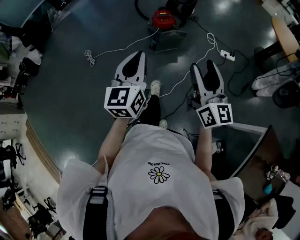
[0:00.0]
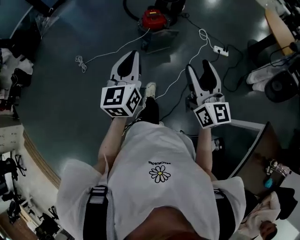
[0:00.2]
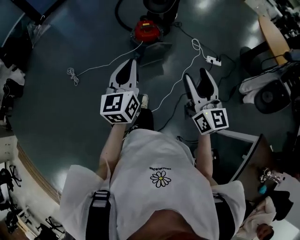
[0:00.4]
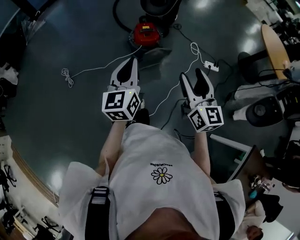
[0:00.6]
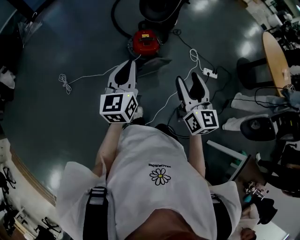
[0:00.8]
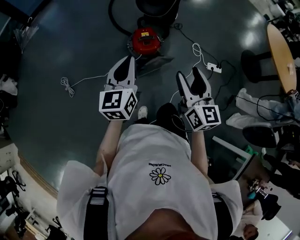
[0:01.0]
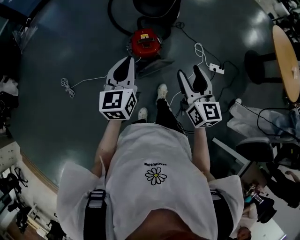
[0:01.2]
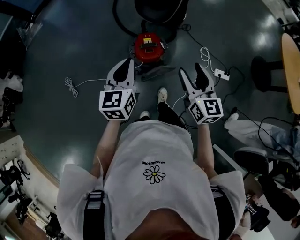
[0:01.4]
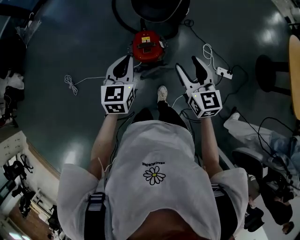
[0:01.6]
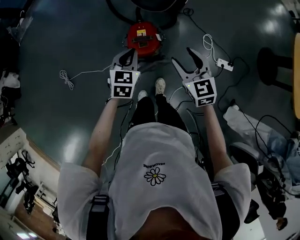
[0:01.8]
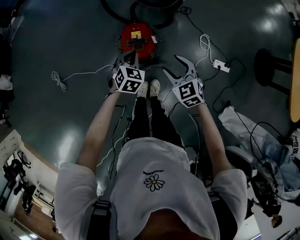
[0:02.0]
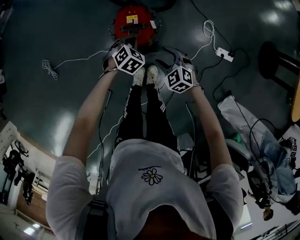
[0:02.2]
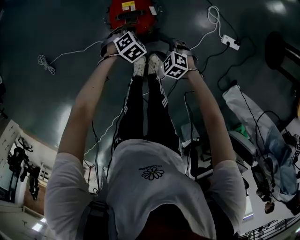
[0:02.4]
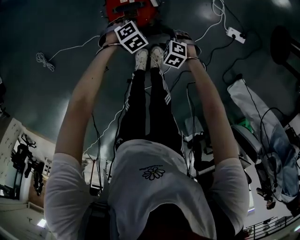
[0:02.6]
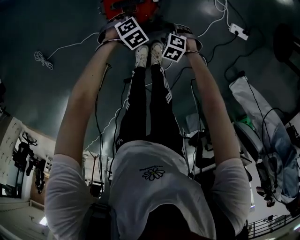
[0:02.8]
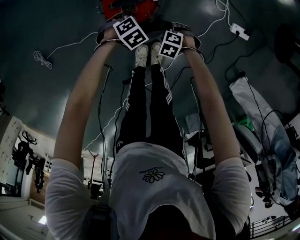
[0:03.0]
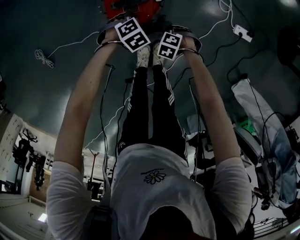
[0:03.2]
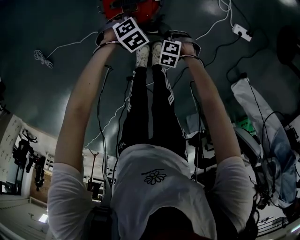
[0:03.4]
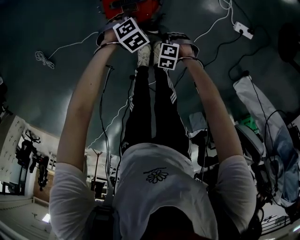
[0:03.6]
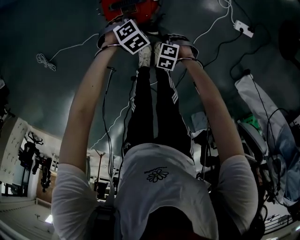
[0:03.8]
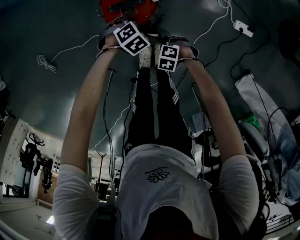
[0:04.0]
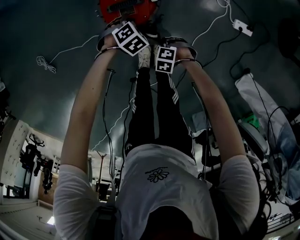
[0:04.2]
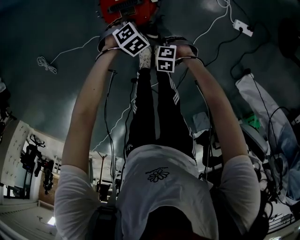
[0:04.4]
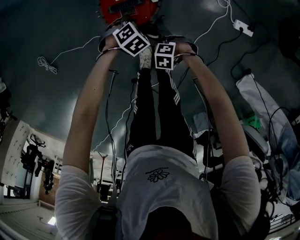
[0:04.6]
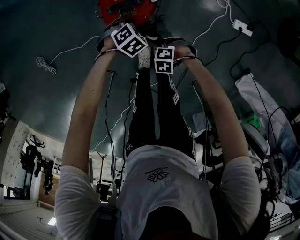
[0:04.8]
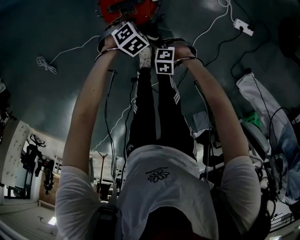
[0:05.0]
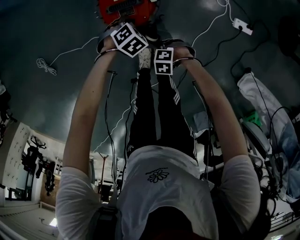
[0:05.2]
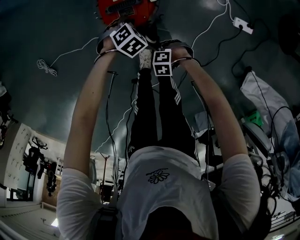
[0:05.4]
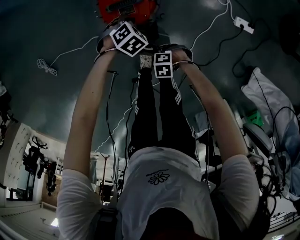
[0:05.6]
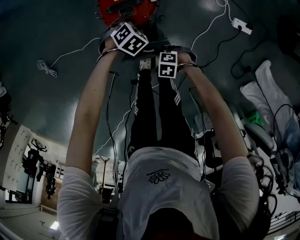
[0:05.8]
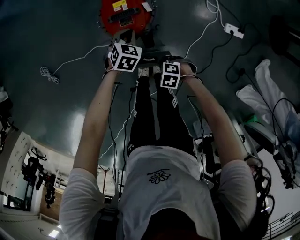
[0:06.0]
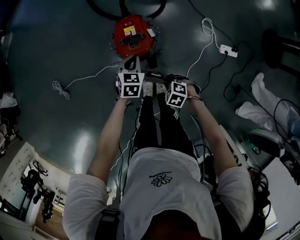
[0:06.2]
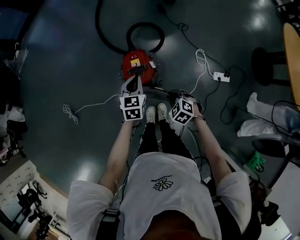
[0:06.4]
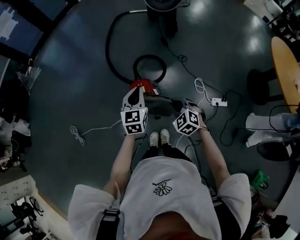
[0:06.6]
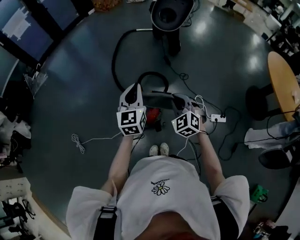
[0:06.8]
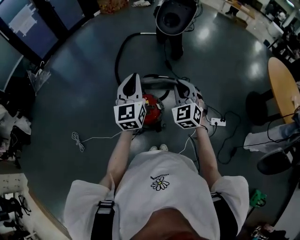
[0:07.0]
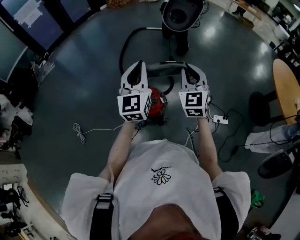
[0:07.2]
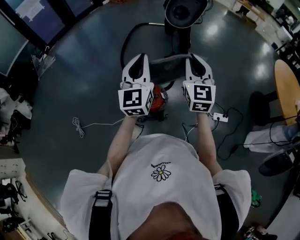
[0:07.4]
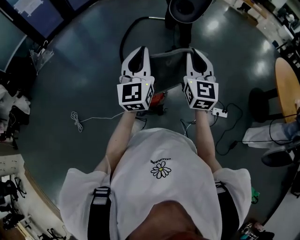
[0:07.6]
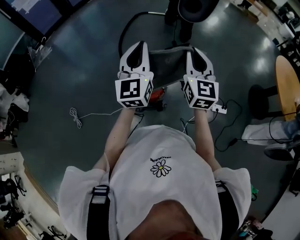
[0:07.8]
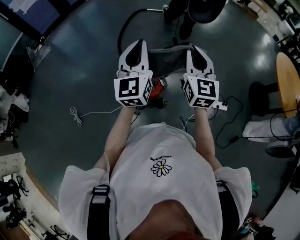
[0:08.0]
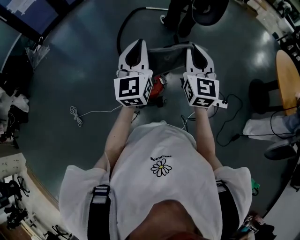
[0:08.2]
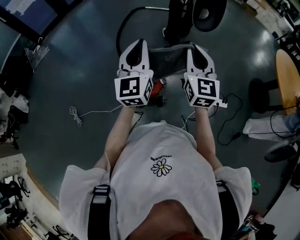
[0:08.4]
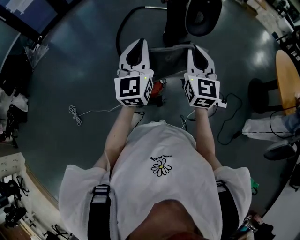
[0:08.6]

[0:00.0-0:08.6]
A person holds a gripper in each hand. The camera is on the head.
0.0 to 1.4 s: The pair of grippers is taken forward, some 60 cm. The right gripper swivels some 20 degrees.
1.4 to 2.8 s: The two grippers go about 50 cm downward. The right gripper angles its fingers downward, by about 60 degrees. The left gripper angles its fingers downward, by roughly 60 degrees.
2.8 to 4.4 s: The right gripper moves approximately 5 cm, and closes up.
4.4 to 5.8 s: The right gripper moves about 5 cm.
5.8 to 7.2 s: Both grippers travel together upward, approximately 70 cm. The left gripper angles its fingers upward, by roughly 80 degrees, while the right gripper tilts its fingers roughly 70 degrees upward.
7.2 to 8.6 s: The right gripper rotates about 20 degrees.

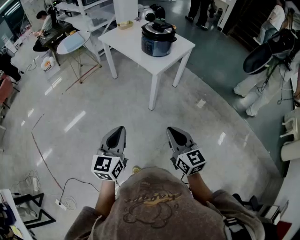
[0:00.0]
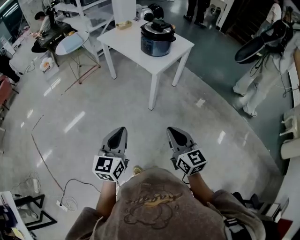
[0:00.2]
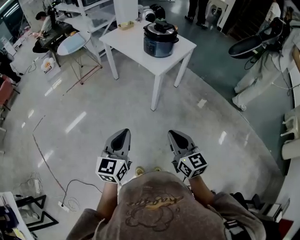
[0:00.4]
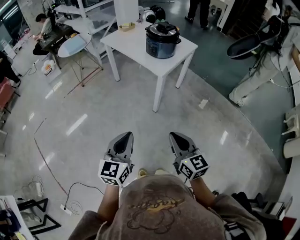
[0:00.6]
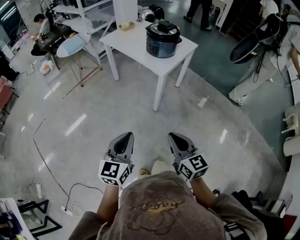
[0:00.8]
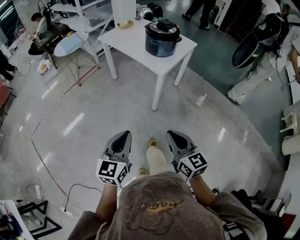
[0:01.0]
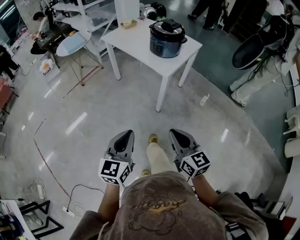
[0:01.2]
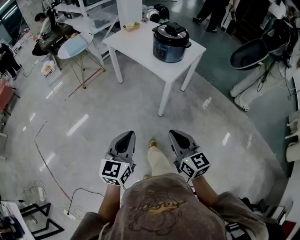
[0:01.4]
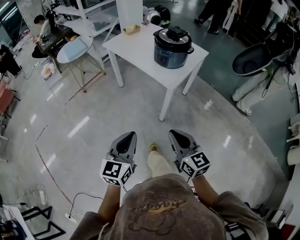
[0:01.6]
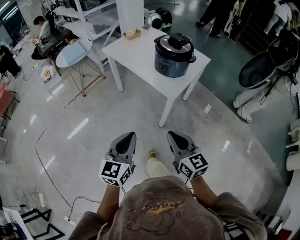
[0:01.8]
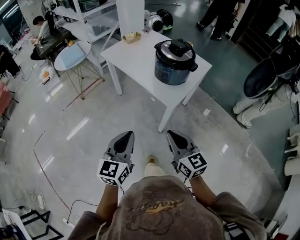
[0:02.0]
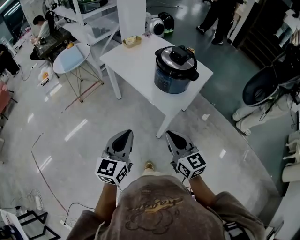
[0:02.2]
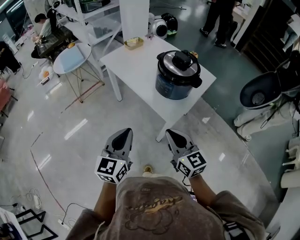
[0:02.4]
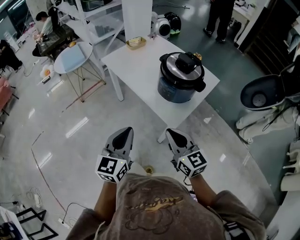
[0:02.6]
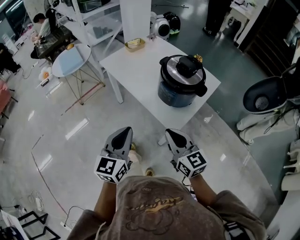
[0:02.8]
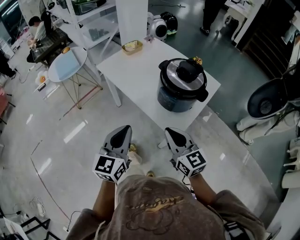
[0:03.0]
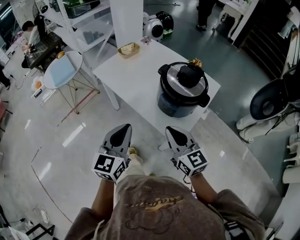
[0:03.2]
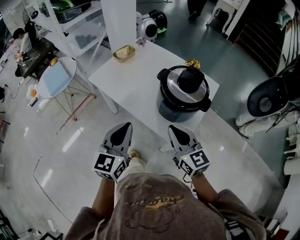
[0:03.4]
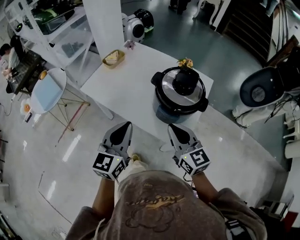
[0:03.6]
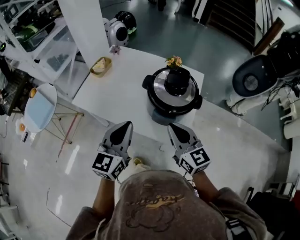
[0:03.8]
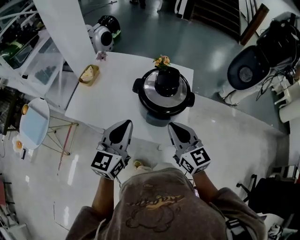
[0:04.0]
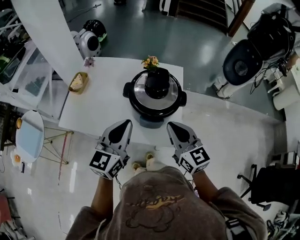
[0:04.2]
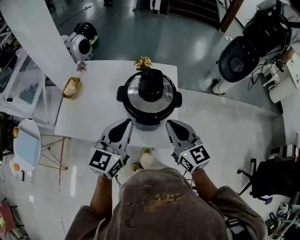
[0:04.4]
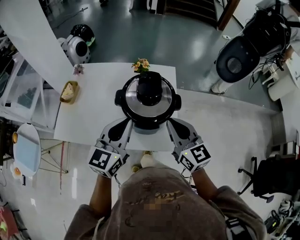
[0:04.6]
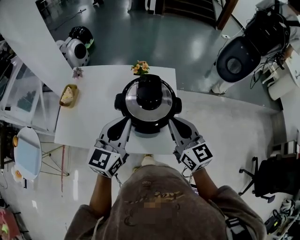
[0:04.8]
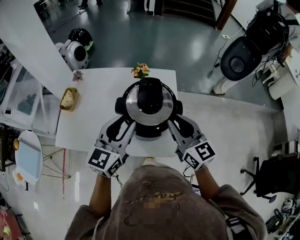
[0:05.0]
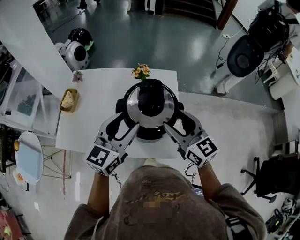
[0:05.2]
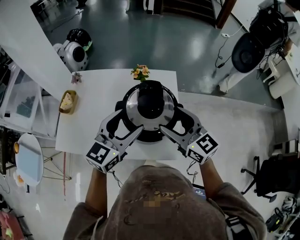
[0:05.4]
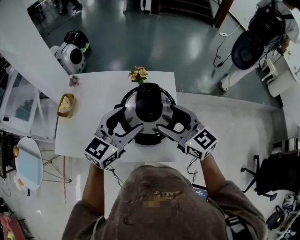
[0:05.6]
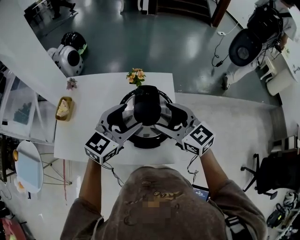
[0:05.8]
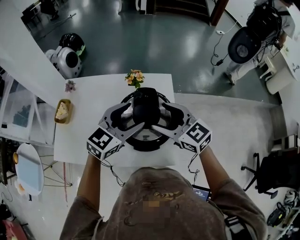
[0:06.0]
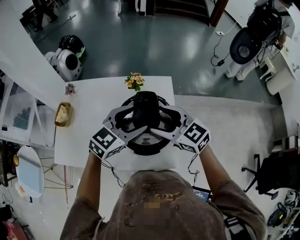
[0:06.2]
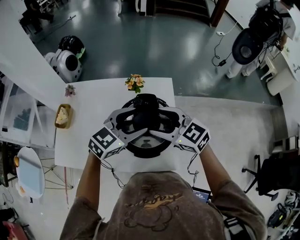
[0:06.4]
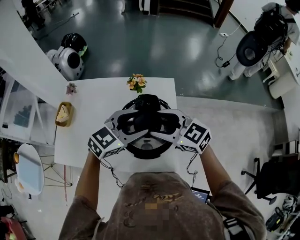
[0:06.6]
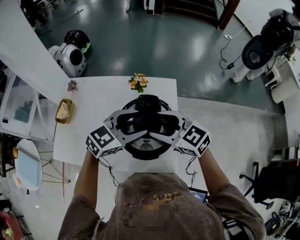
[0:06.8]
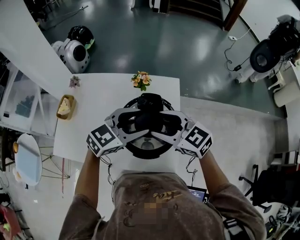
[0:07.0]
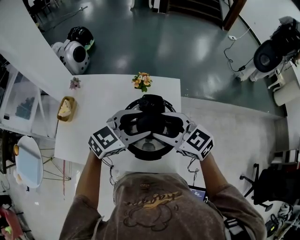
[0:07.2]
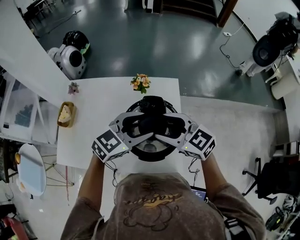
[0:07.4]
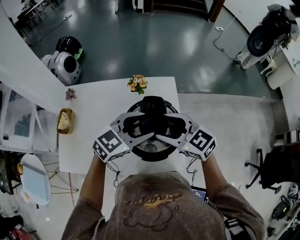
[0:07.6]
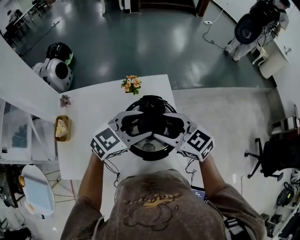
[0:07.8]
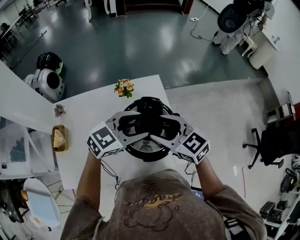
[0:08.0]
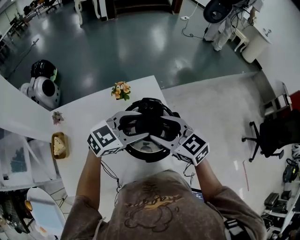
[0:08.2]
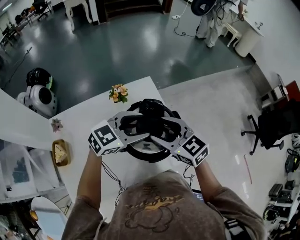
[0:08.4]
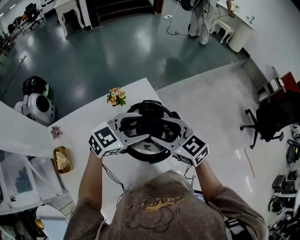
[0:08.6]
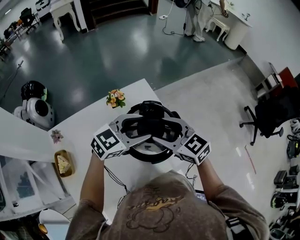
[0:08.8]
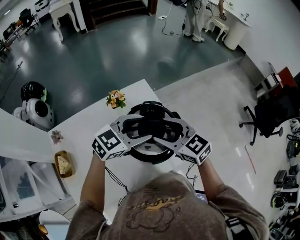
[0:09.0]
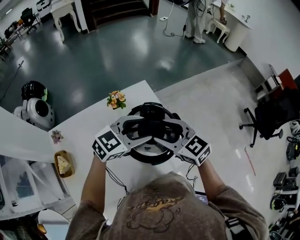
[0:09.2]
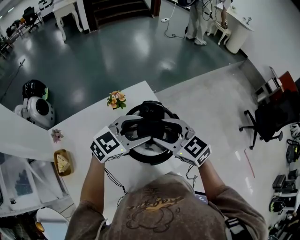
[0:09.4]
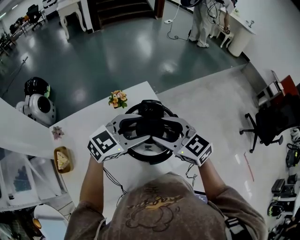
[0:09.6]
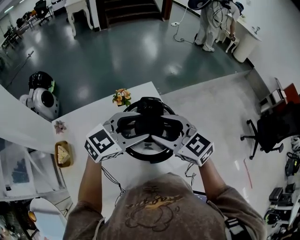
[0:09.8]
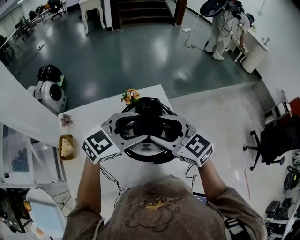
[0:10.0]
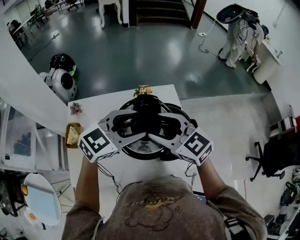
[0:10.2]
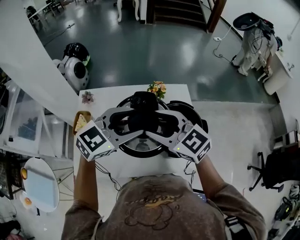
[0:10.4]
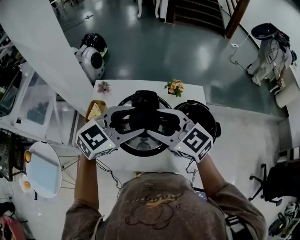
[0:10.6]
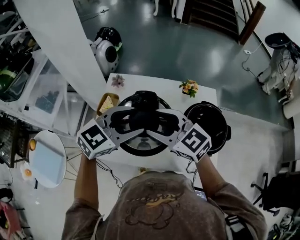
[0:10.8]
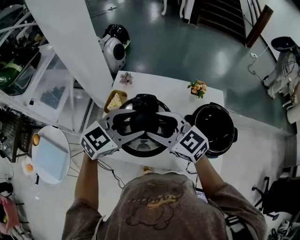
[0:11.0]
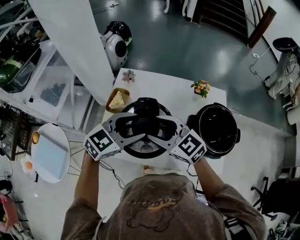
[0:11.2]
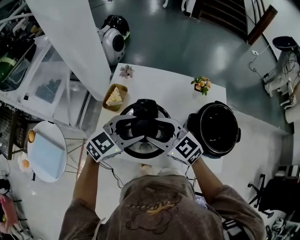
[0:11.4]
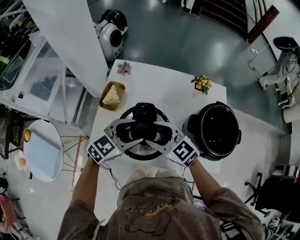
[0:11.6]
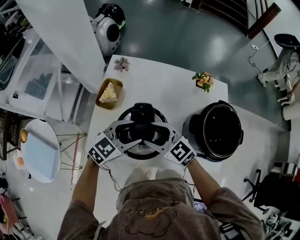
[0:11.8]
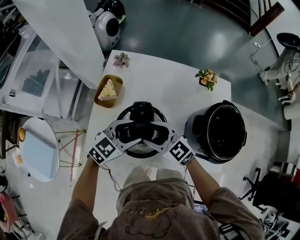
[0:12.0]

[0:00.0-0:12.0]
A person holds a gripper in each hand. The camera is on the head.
0.0 to 1.6 s: The left gripper moves forward, roughly 15 cm. The right gripper travels forward and to the left by approximately 15 cm.
1.6 to 3.0 s: The two grippers go roughly 35 cm forward.
3.0 to 4.4 s: The right gripper changes place by some 15 cm, and turns by approximately 40 degrees, while the left gripper moves approximately 25 cm, and swivels approximately 40 degrees.
4.4 to 6.0 s: The grippers both shift forward by approximately 15 cm. The right gripper opens up. The left gripper swivels roughly 30 degrees, and opens its fingers.
6.0 to 7.6 s: The grippers move only a little.
7.6 to 9.0 s: The left gripper rotates about 30 degrees, while the right gripper rotates roughly 30 degrees.
9.0 to 10.4 s: The left gripper moves some 15 cm, and swivels some 30 degrees. Meanwhile the right gripper moves about 15 cm, and turns by about 30 degrees.
10.4 to 12.0 s: The grippers both shift downward and to the left by approximately 30 cm. The left gripper swivels approximately 20 degrees.

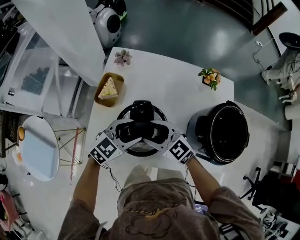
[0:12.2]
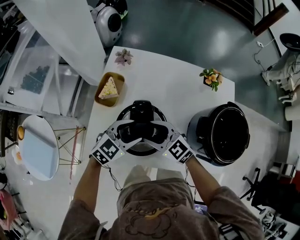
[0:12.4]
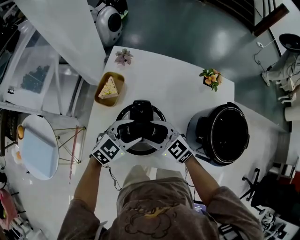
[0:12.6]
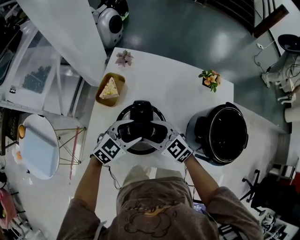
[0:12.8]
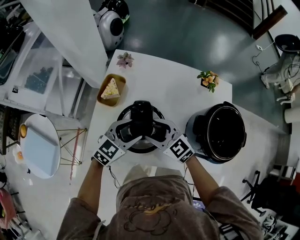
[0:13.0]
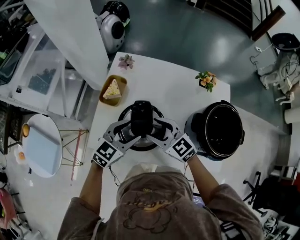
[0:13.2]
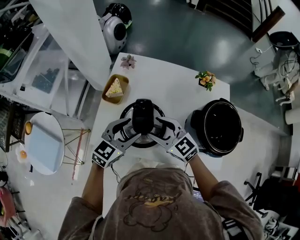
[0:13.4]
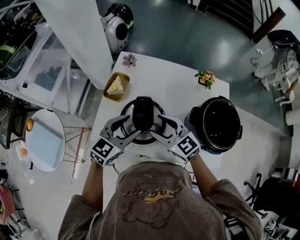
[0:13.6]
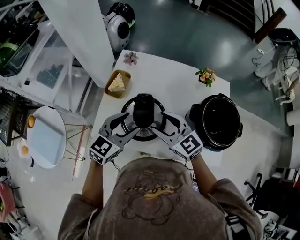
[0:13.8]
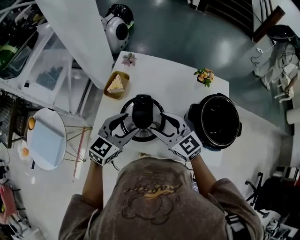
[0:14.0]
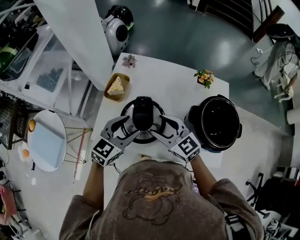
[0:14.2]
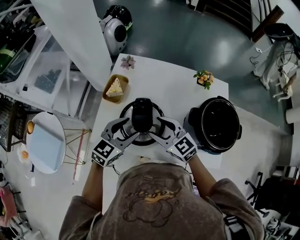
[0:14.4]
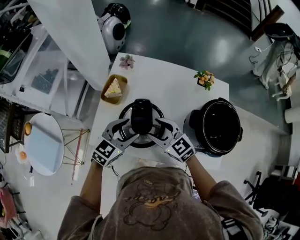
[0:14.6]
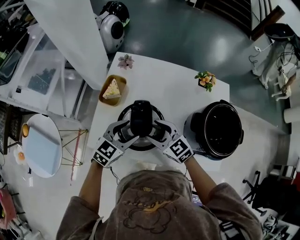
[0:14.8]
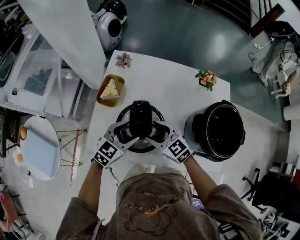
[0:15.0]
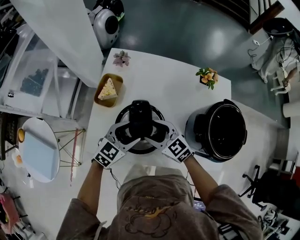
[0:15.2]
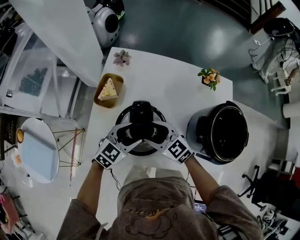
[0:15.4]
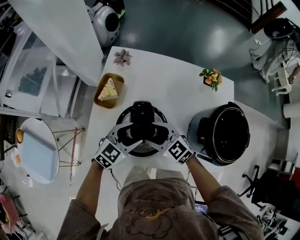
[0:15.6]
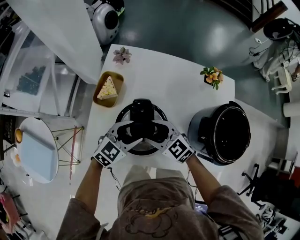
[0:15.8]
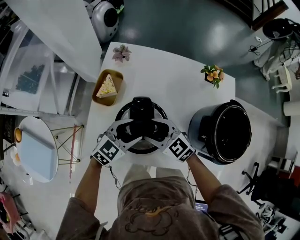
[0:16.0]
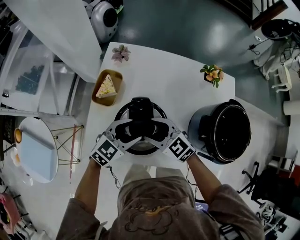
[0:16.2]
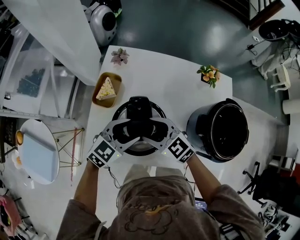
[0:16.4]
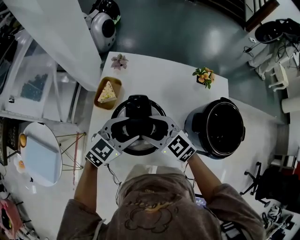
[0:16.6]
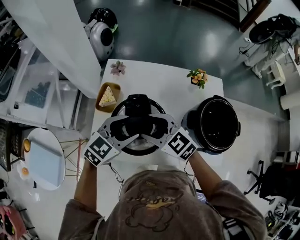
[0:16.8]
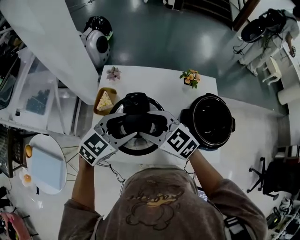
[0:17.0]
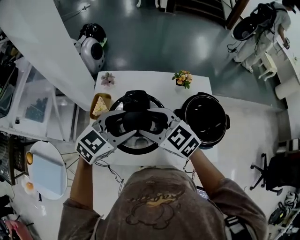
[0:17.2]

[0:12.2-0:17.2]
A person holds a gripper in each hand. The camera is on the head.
12.2 to 13.8 s: Both grippers move upward, approximately 10 cm.
13.8 to 15.6 s: The grippers both shift downward by approximately 15 cm.
15.6 to 17.2 s: The two grippers go approximately 20 cm upward.
